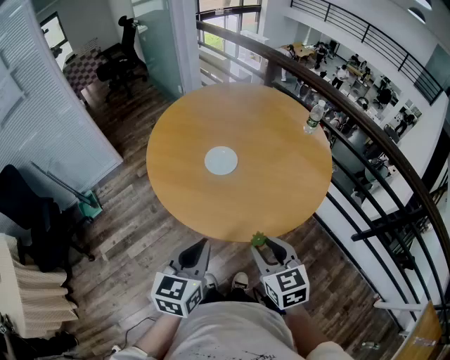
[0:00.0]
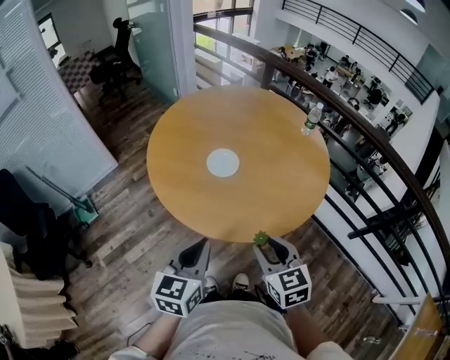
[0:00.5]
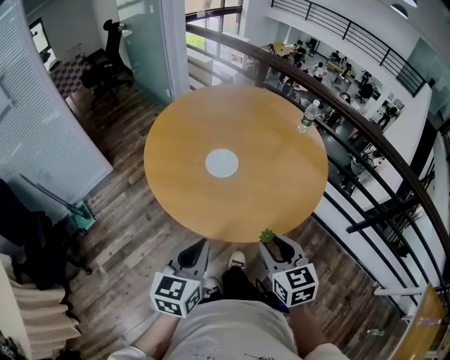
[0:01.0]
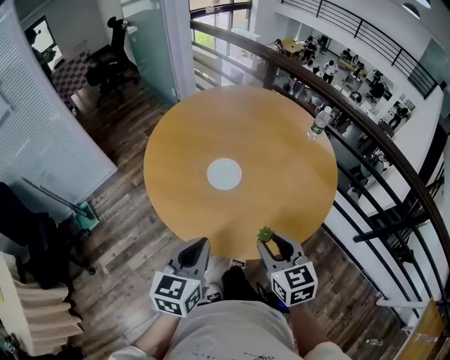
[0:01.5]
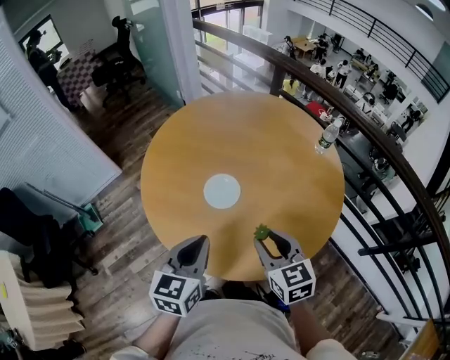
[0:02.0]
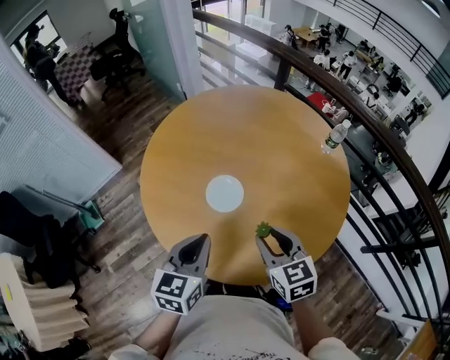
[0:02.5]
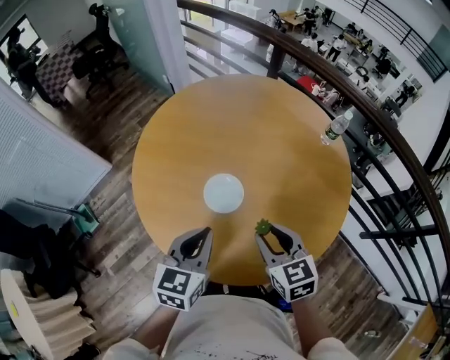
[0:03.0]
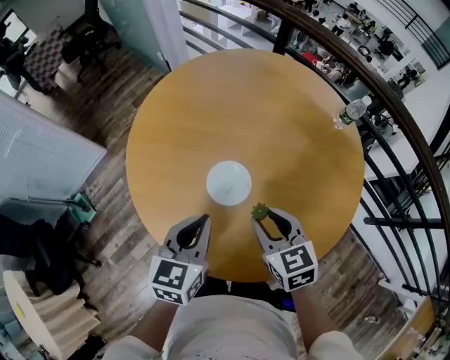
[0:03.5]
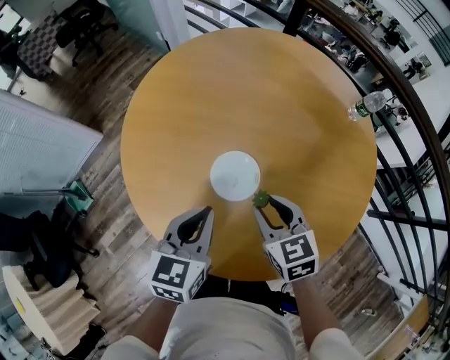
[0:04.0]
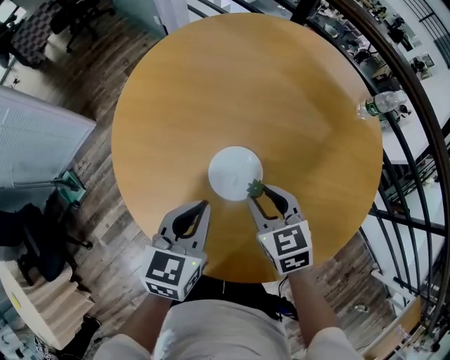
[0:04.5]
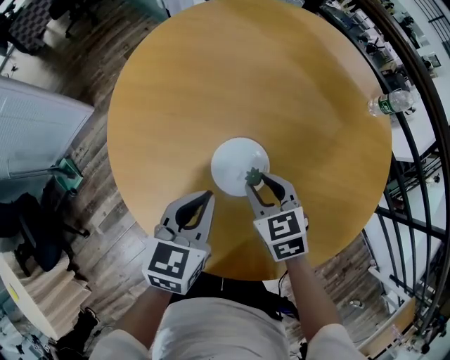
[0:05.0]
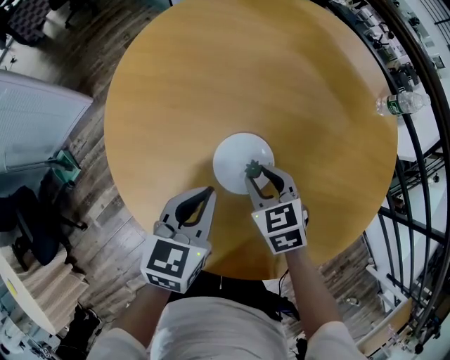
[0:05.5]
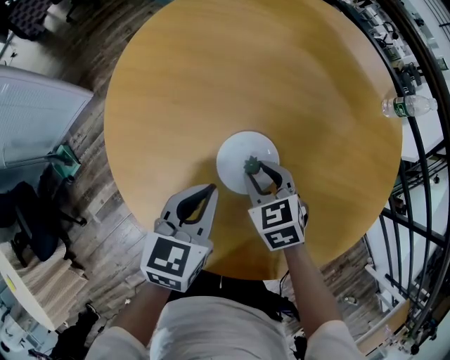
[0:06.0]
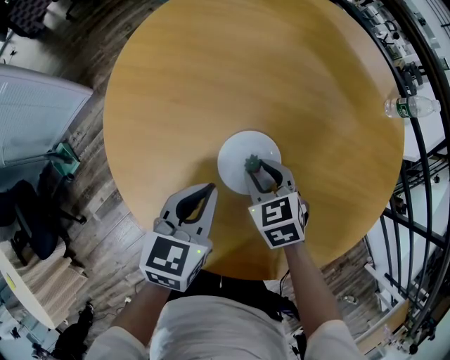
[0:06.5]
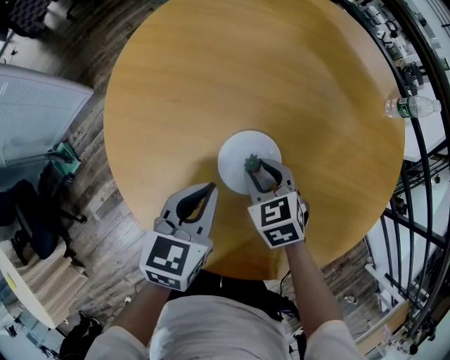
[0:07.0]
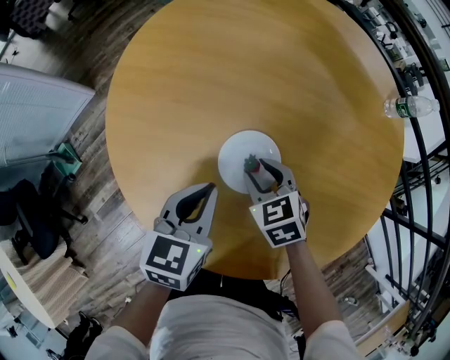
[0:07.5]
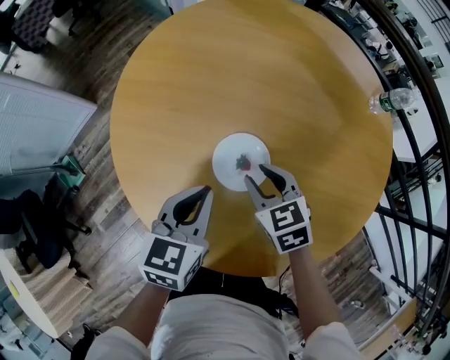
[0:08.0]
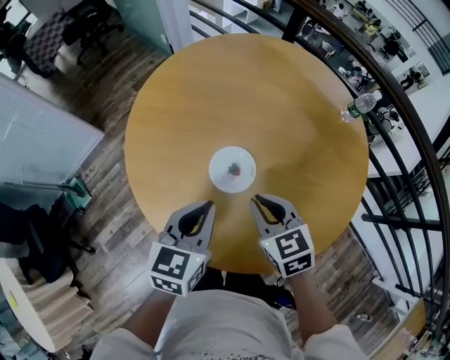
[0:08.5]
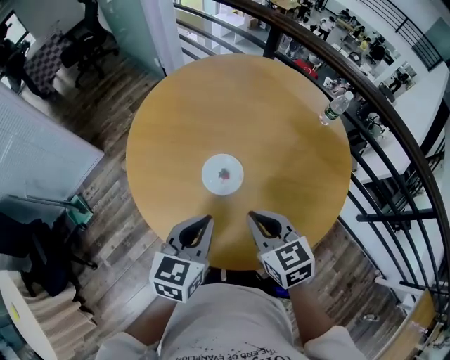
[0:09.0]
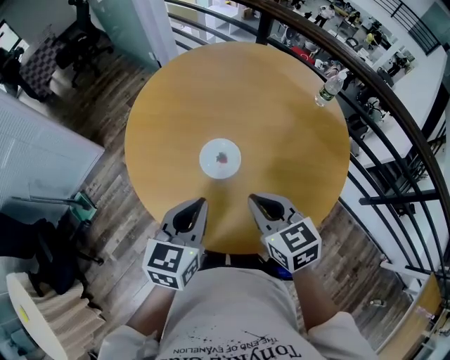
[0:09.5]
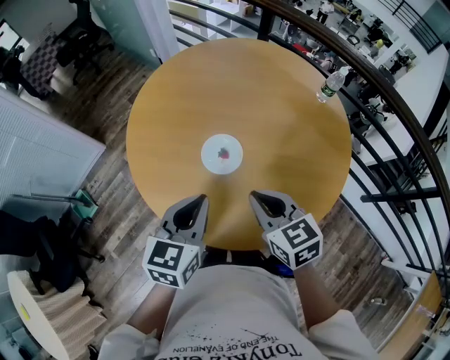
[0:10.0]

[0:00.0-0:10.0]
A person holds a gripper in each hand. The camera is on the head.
0:00.0 to 0:02.0: The grippers both shift forward by some 20 cm.
0:02.0 to 0:04.0: The left gripper moves forward and downward, approximately 20 cm, while the right gripper goes about 20 cm forward, downward and to the left.
0:04.0 to 0:06.0: The right gripper is displaced downward and forward by about 15 cm. Meanwhile the left gripper heads downward, covering about 10 cm.
0:06.0 to 0:08.0: The right gripper heads upward, covering about 5 cm.
0:08.0 to 0:10.0: Both grippers move upward and backward, about 20 cm. The right gripper closes.

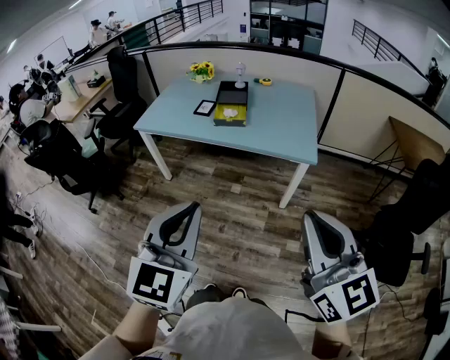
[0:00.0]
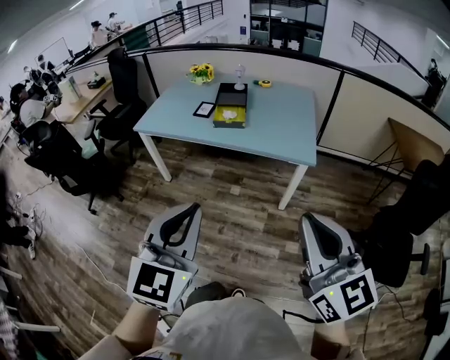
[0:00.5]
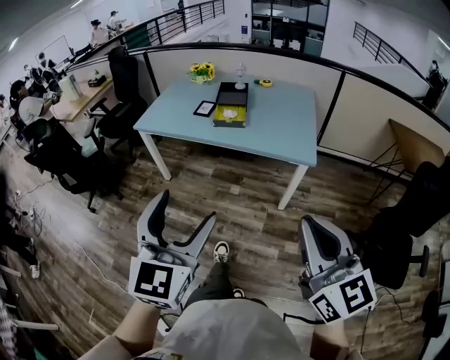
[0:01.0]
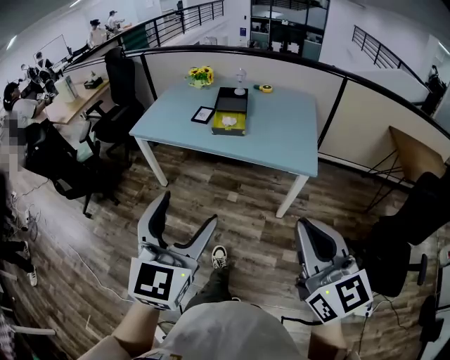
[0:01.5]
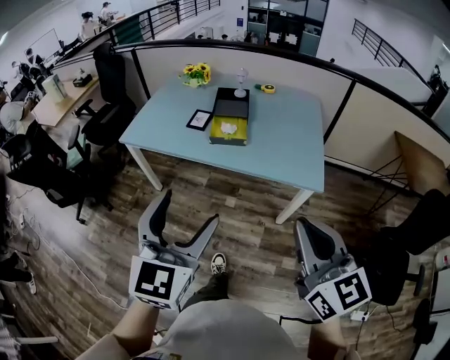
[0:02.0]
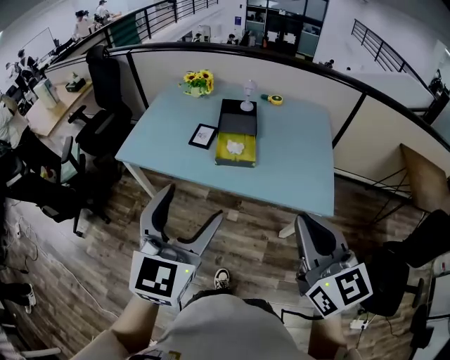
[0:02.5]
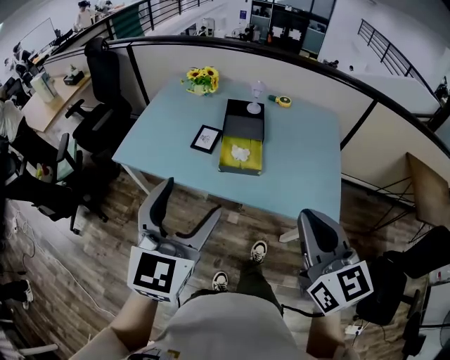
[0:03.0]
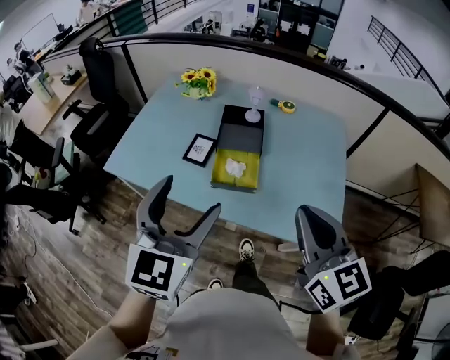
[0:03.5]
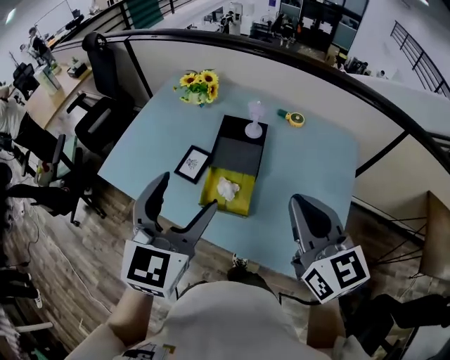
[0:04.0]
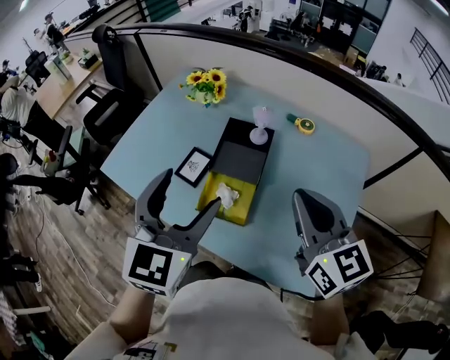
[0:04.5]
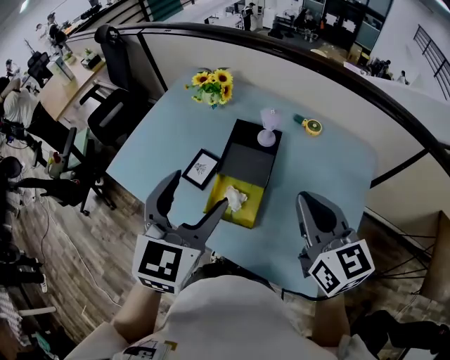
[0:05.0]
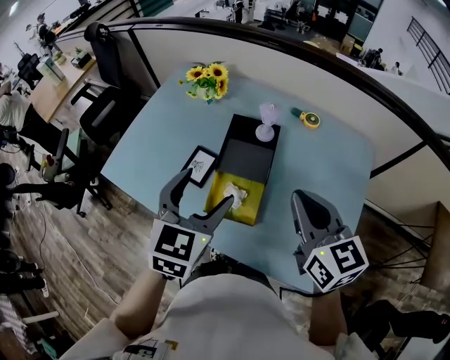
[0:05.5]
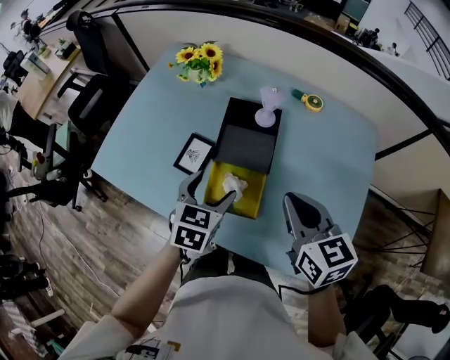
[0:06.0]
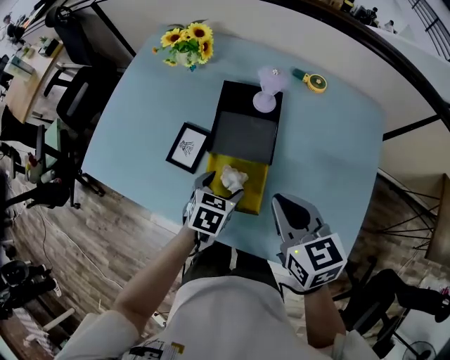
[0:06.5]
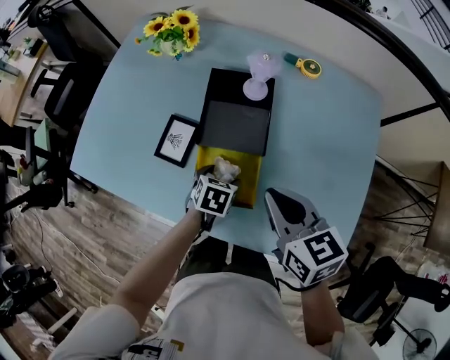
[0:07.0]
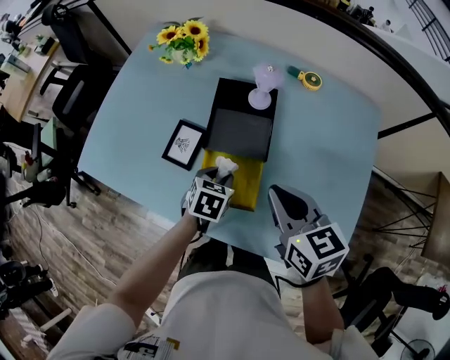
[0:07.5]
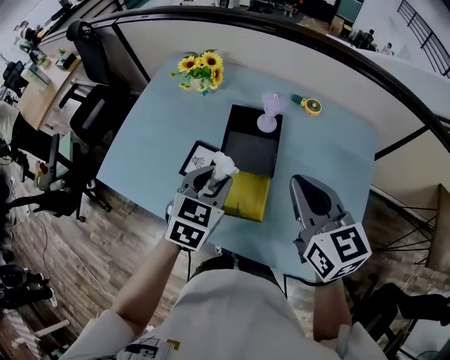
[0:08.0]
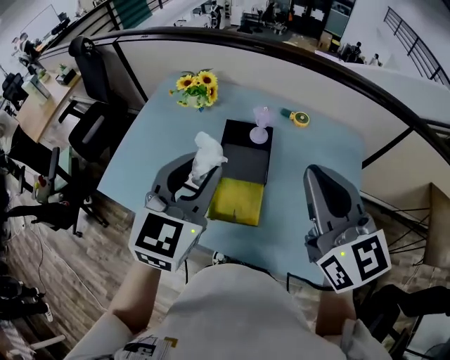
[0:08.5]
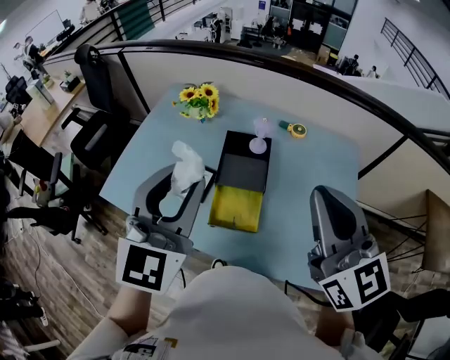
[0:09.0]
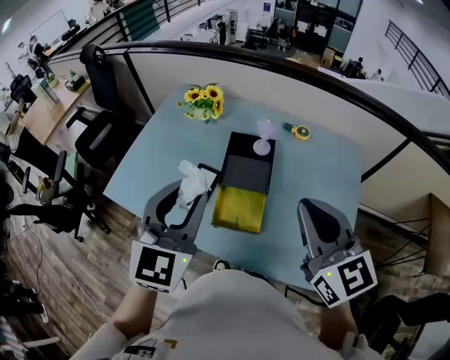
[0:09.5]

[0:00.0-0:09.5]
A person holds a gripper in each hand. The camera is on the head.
0:00.0 to 0:02.0: Both grippers travel together forward, about 20 cm. The left gripper opens.
0:02.0 to 0:04.0: The pair of grippers is taken forward, approximately 50 cm.
0:04.0 to 0:05.5: The two grippers go roughly 10 cm forward and downward.
0:05.5 to 0:07.5: The left gripper travels downward by roughly 30 cm, tips its fingers downward by some 30 degrees, and closes up; the right gripper shifts approximately 15 cm downward.
0:07.5 to 0:09.5: The left gripper goes about 40 cm upward, and angles its fingers upward, by about 50 degrees. Meanwhile the right gripper moves upward, about 20 cm, and swivels about 30 degrees.

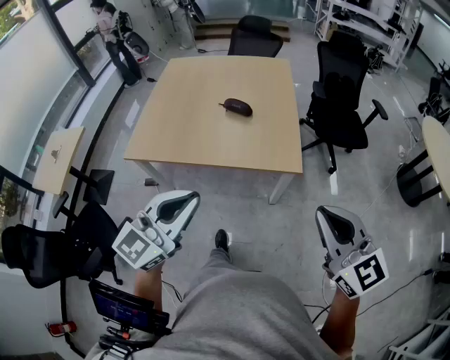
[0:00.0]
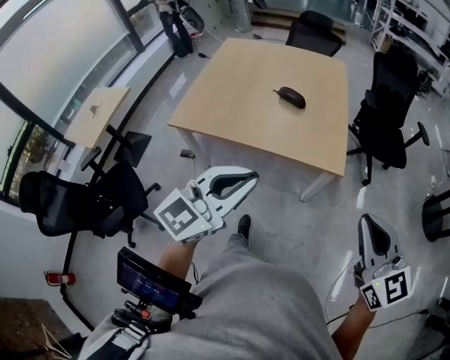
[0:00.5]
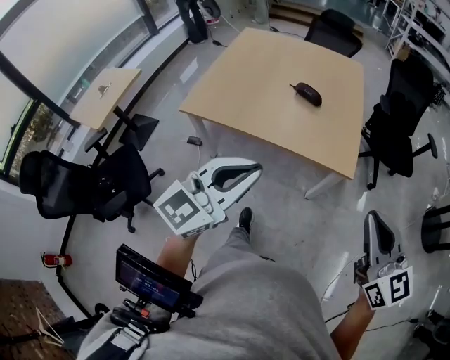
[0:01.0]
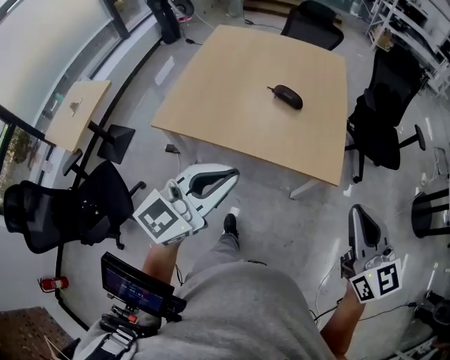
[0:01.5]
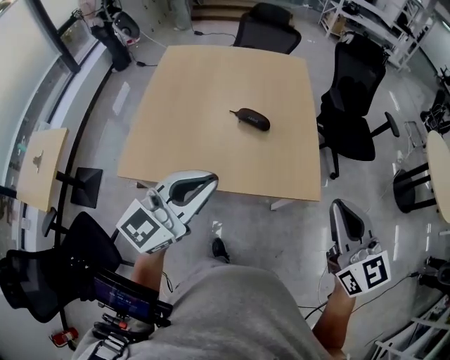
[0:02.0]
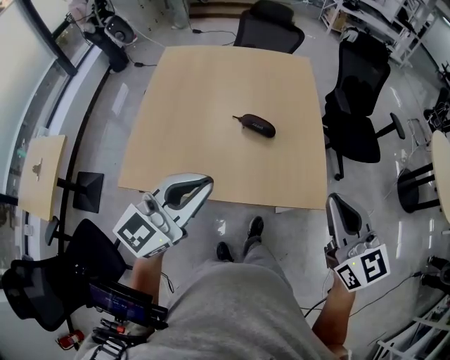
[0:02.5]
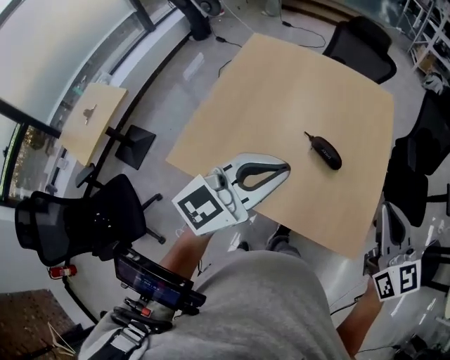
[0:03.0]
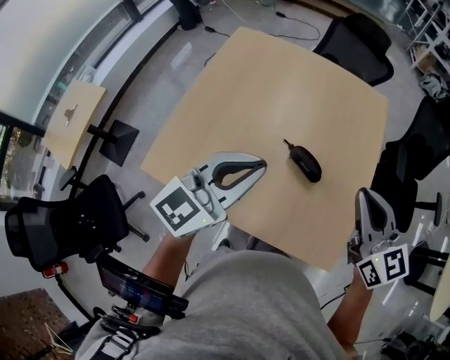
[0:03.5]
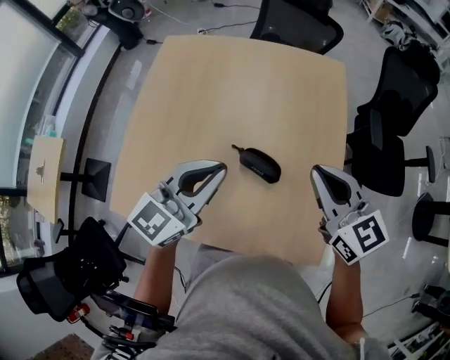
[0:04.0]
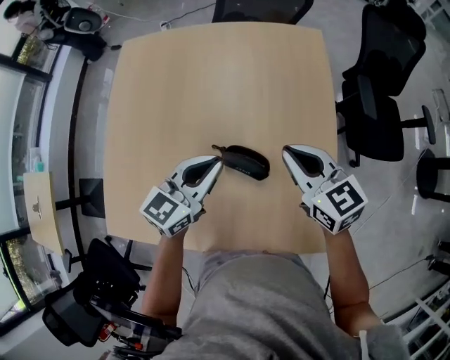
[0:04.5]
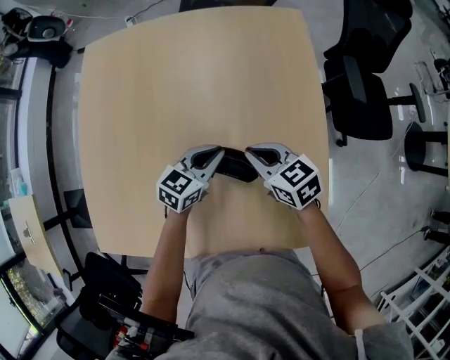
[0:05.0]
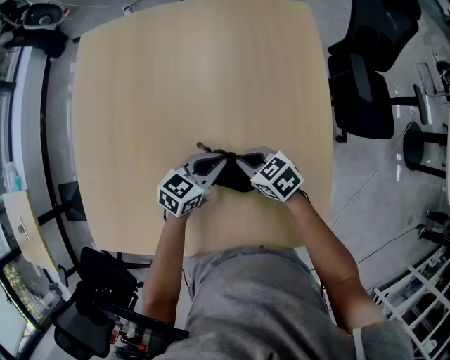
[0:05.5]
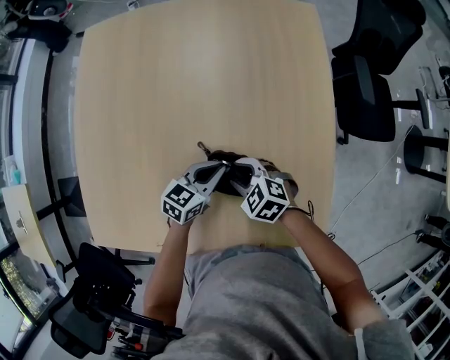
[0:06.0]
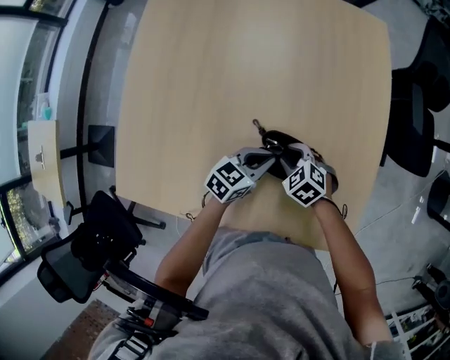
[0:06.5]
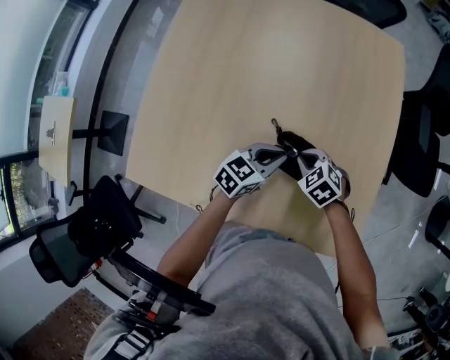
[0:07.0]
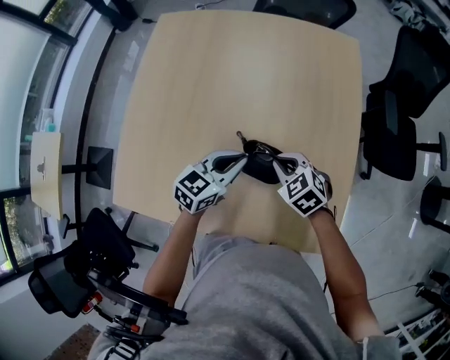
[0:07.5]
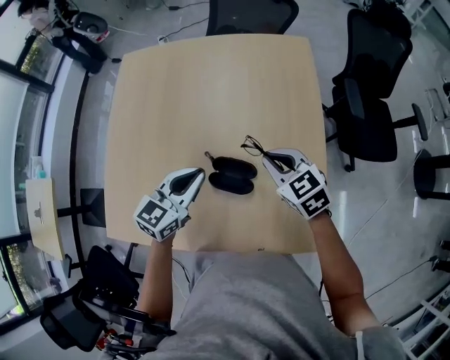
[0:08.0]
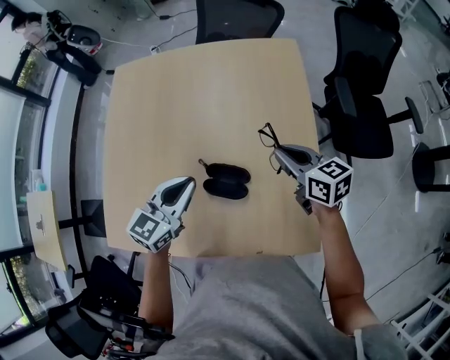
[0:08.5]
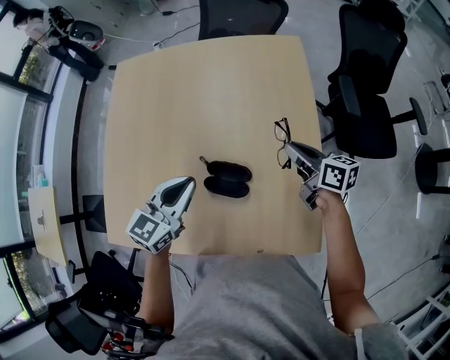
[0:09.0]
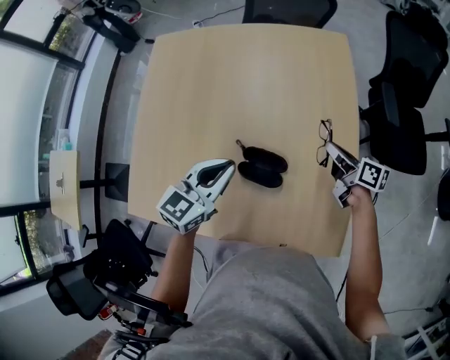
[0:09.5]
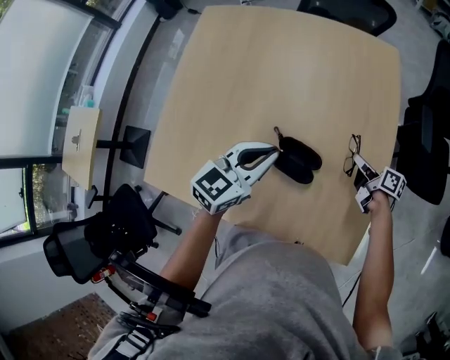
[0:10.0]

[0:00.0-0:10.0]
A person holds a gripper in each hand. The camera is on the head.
0:00.0 to 0:02.0: The grippers both shift forward and to the left by approximately 25 cm.
0:02.0 to 0:04.0: The two grippers go approximately 40 cm forward.
0:04.0 to 0:06.0: The two grippers go some 35 cm downward. The left gripper turns by some 30 degrees. The right gripper angles its fingers downward, by approximately 40 degrees, and opens up.
0:06.0 to 0:08.0: The left gripper goes about 20 cm upward, and swivels roughly 20 degrees. Meanwhile the right gripper goes approximately 20 cm upward and to the right, swivels roughly 30 degrees, and closes.
0:08.0 to 0:10.0: The right gripper shifts some 20 cm downward and to the right, and twists approximately 60 degrees clockwise, seen from behind.
